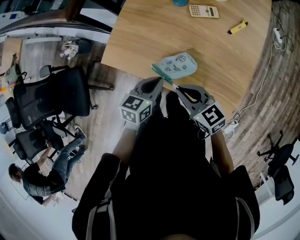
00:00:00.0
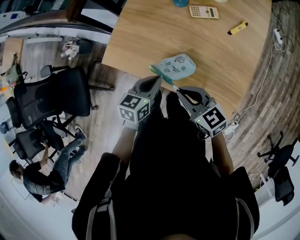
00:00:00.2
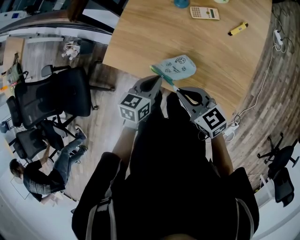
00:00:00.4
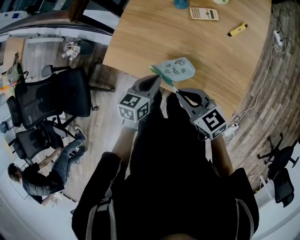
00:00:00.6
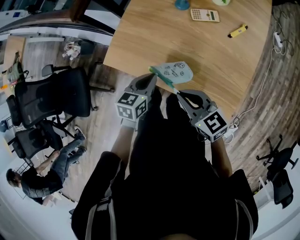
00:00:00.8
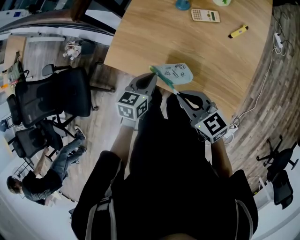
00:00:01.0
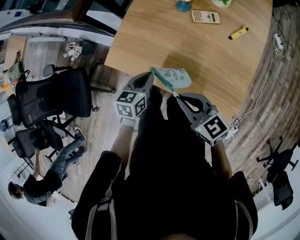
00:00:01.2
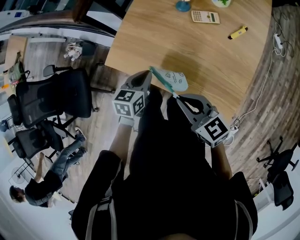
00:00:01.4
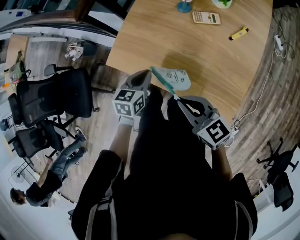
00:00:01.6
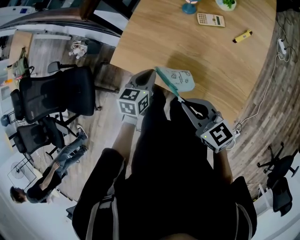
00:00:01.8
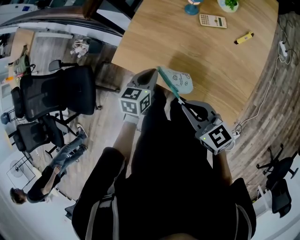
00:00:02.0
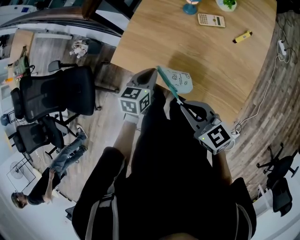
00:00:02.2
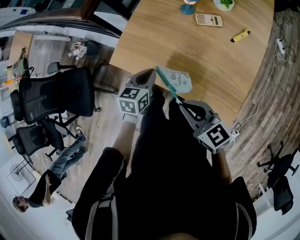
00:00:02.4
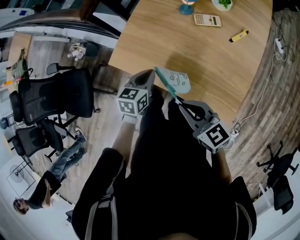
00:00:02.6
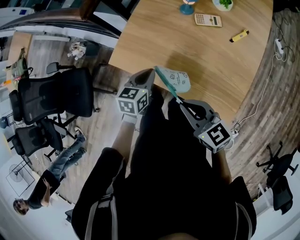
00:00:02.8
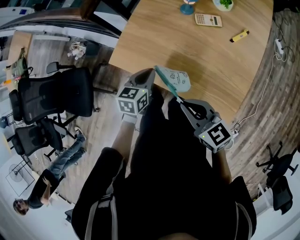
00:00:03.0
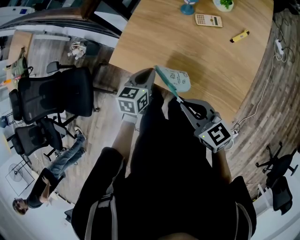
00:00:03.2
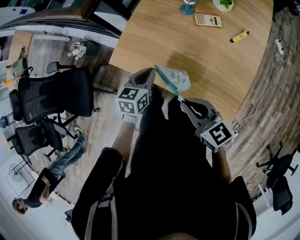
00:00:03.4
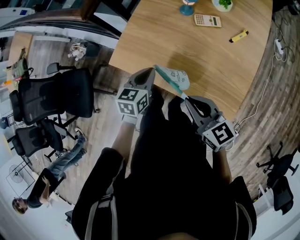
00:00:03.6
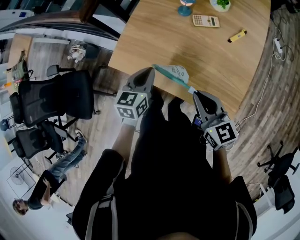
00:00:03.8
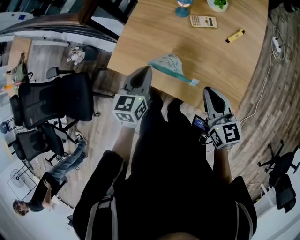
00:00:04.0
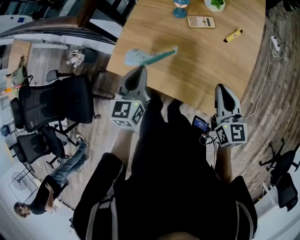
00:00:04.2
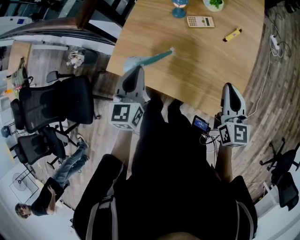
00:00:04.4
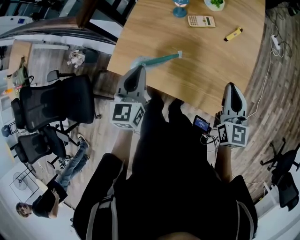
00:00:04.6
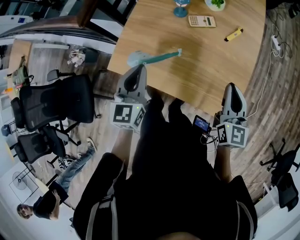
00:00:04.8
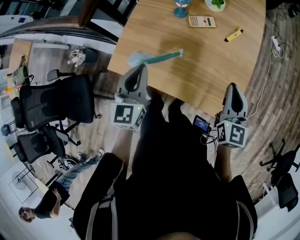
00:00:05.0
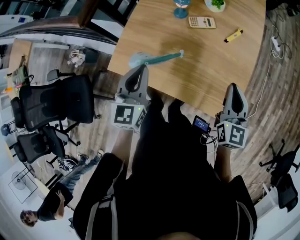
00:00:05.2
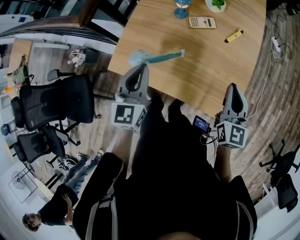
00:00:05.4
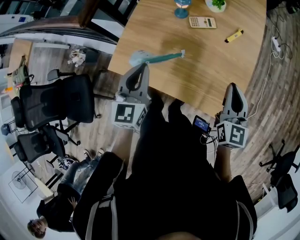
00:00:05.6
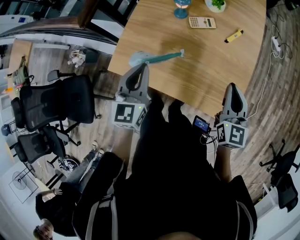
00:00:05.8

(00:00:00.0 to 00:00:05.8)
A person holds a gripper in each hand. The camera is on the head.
00:00:00.0 - 00:00:01.4: The right gripper shifts about 5 cm upward. The left gripper moves about 5 cm.
00:00:01.4 - 00:00:02.8: There are only small adjustments of the grippers.
00:00:02.8 - 00:00:04.4: The left gripper travels upward by roughly 10 cm, and swivels roughly 30 degrees. Meanwhile the right gripper moves to the right, roughly 20 cm, and swivels roughly 50 degrees.
00:00:04.4 - 00:00:05.8: There are only small adjustments of the grippers.

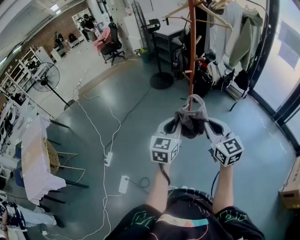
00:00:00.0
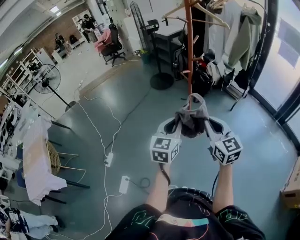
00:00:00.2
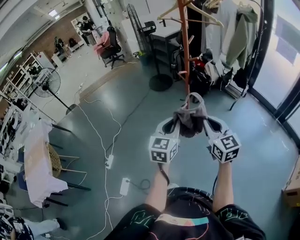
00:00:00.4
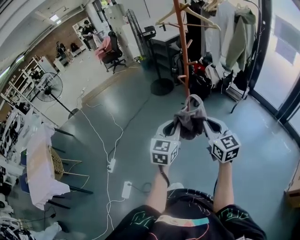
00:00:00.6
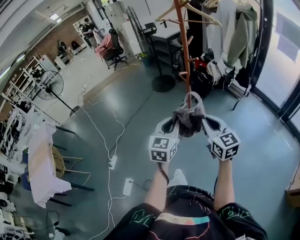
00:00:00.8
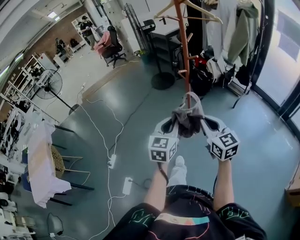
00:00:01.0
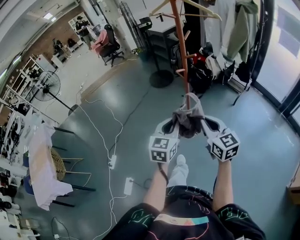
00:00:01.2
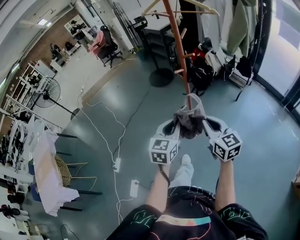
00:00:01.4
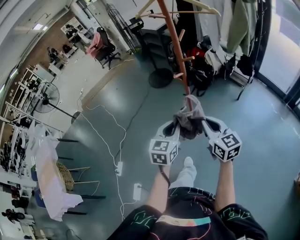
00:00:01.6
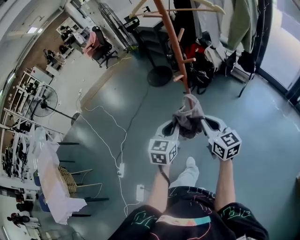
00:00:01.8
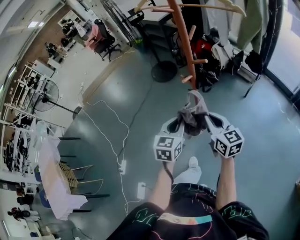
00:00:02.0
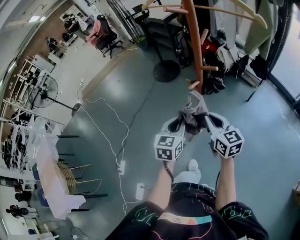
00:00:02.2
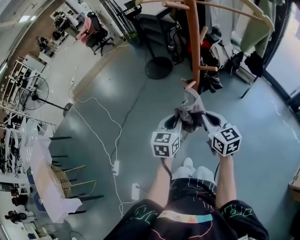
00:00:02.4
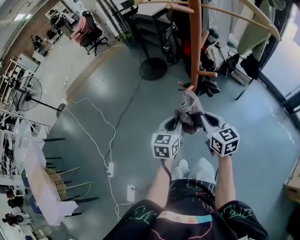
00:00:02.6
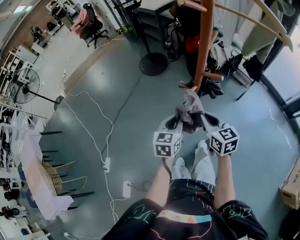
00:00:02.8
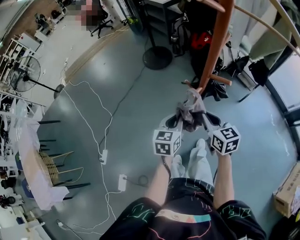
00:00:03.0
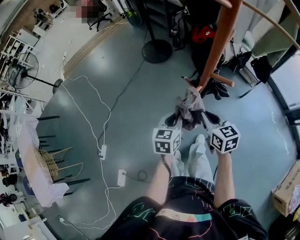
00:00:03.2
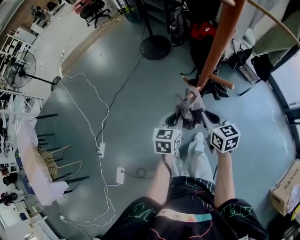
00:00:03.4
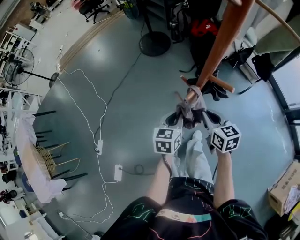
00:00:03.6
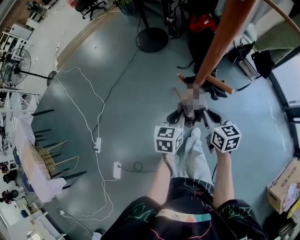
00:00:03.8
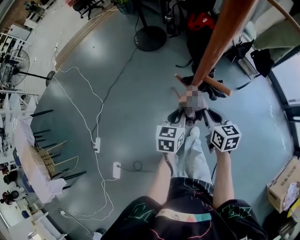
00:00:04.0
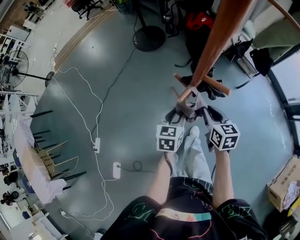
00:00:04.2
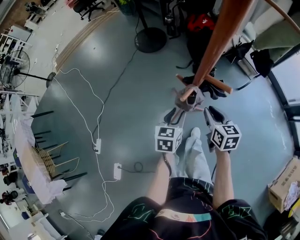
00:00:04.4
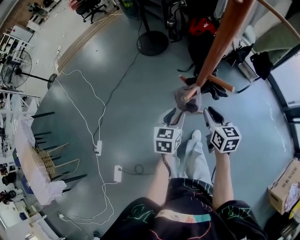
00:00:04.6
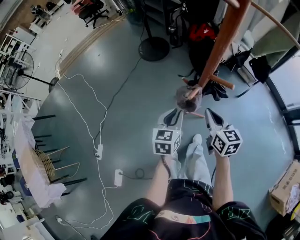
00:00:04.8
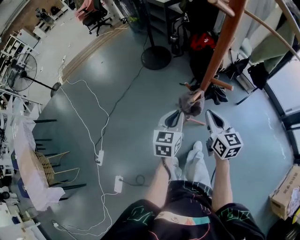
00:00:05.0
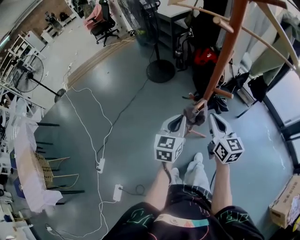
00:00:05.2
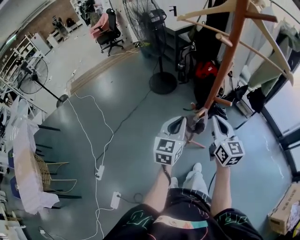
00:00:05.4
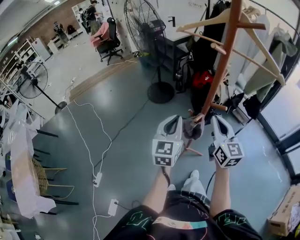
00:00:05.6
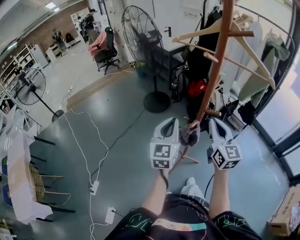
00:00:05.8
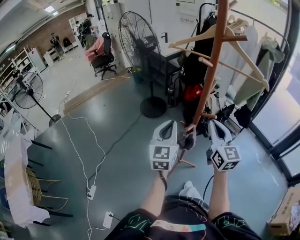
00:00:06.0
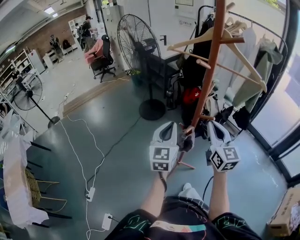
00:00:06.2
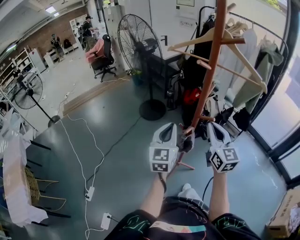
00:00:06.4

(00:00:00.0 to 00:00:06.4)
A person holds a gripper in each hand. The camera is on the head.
00:00:00.0 - 00:00:01.6: The two grippers go some 15 cm forward, downward and to the right.
00:00:01.6 - 00:00:03.2: Both grippers travel together forward and downward, approximately 30 cm. The left gripper changes its angle by approximately 20 degrees. The right gripper changes its angle by approximately 20 degrees.
00:00:03.2 - 00:00:04.8: The left gripper opens, then closes again.
00:00:04.8 - 00:00:06.4: Both grippers move upward, approximately 20 cm. The right gripper swivels about 30 degrees, while the left gripper changes its angle by some 30 degrees.

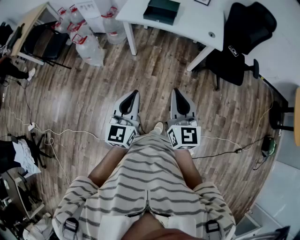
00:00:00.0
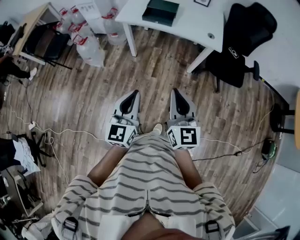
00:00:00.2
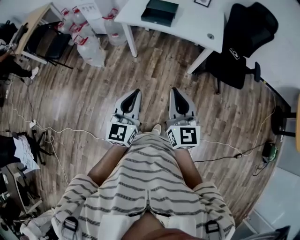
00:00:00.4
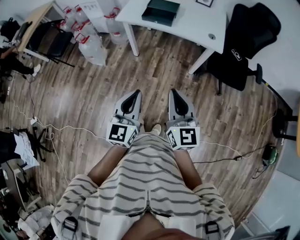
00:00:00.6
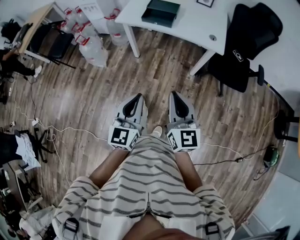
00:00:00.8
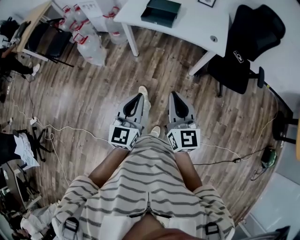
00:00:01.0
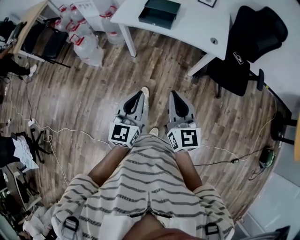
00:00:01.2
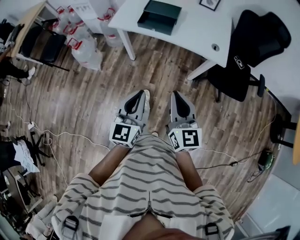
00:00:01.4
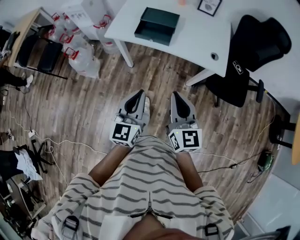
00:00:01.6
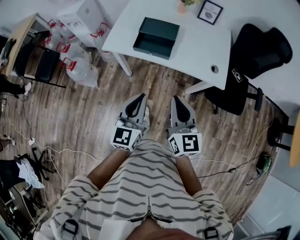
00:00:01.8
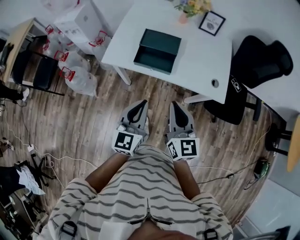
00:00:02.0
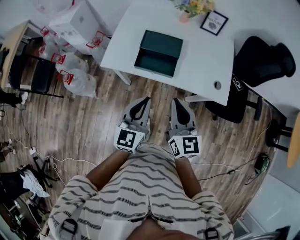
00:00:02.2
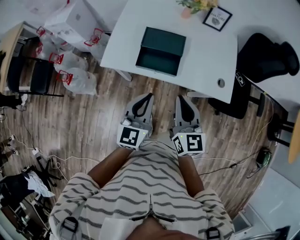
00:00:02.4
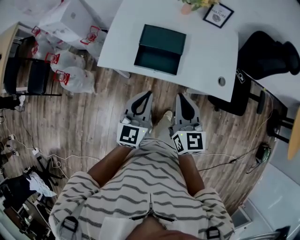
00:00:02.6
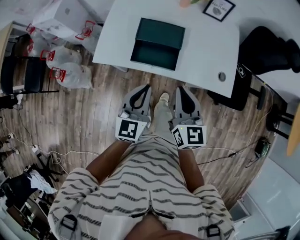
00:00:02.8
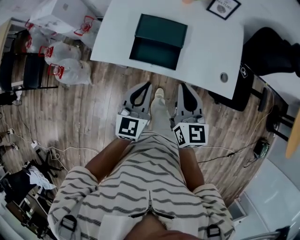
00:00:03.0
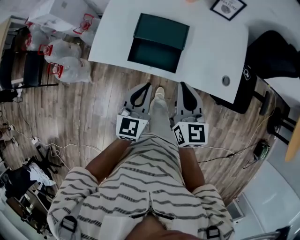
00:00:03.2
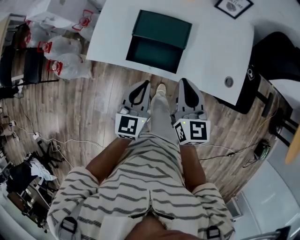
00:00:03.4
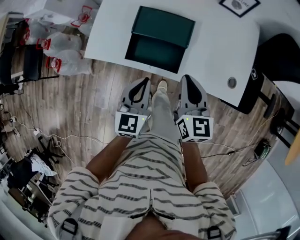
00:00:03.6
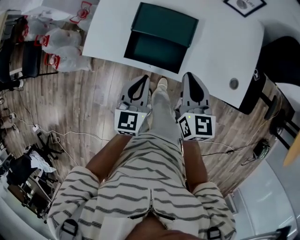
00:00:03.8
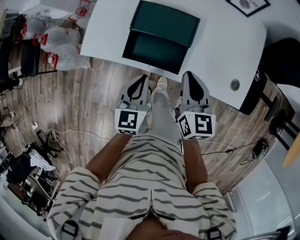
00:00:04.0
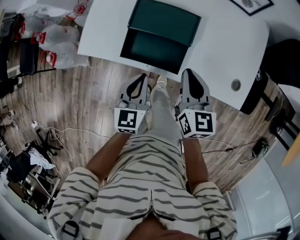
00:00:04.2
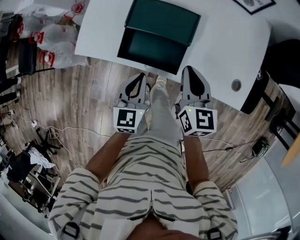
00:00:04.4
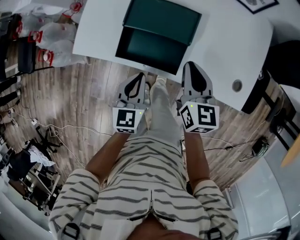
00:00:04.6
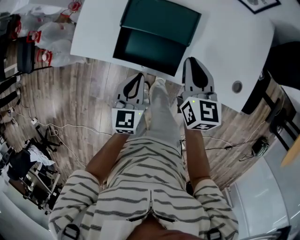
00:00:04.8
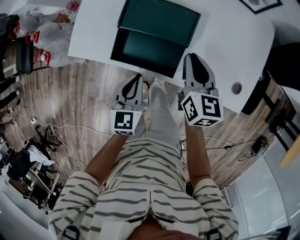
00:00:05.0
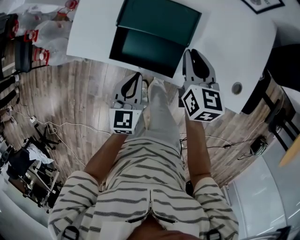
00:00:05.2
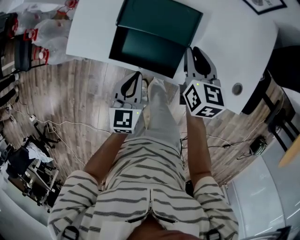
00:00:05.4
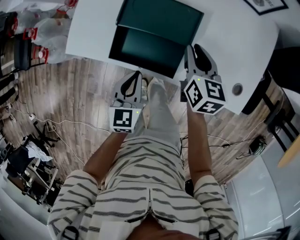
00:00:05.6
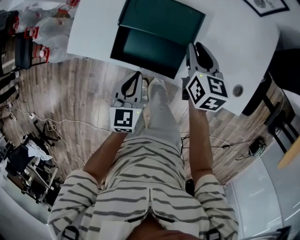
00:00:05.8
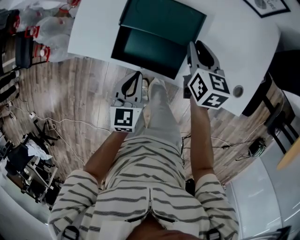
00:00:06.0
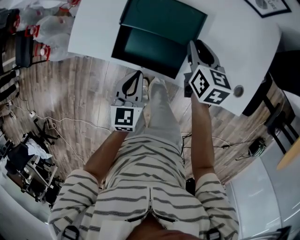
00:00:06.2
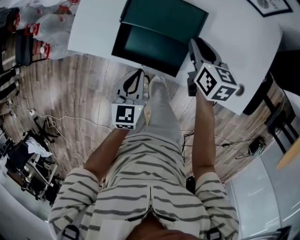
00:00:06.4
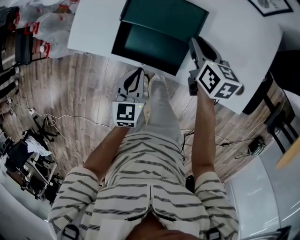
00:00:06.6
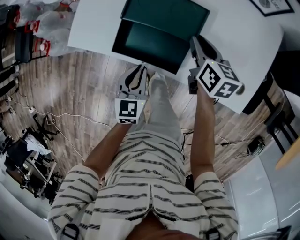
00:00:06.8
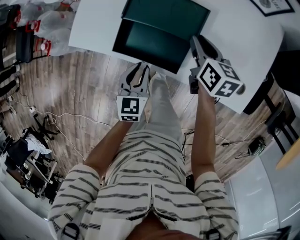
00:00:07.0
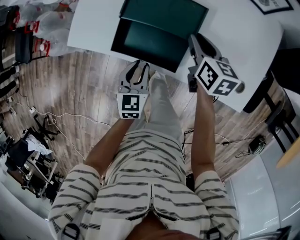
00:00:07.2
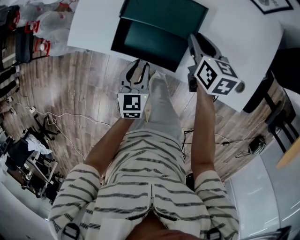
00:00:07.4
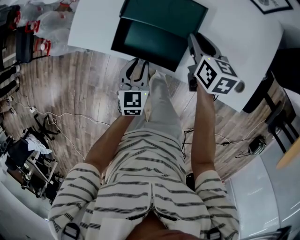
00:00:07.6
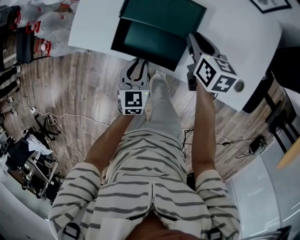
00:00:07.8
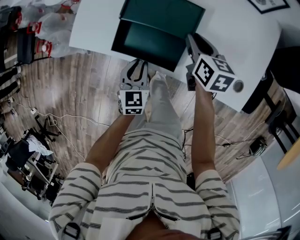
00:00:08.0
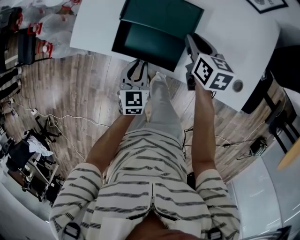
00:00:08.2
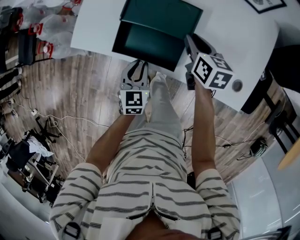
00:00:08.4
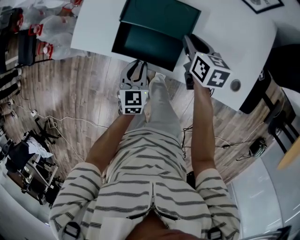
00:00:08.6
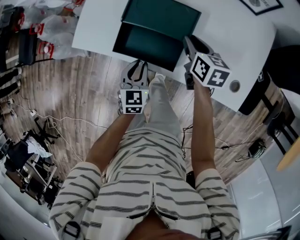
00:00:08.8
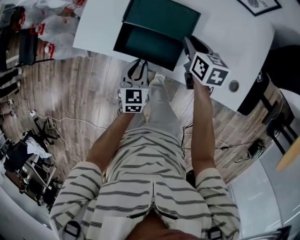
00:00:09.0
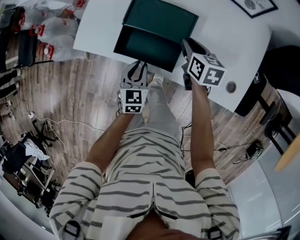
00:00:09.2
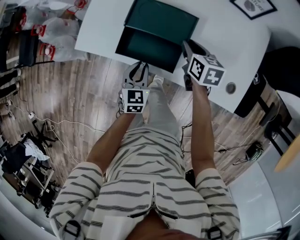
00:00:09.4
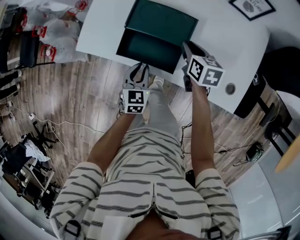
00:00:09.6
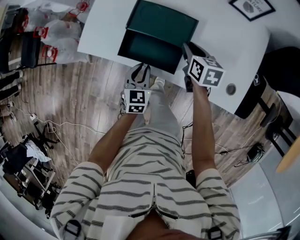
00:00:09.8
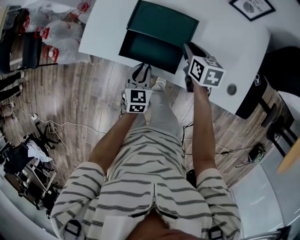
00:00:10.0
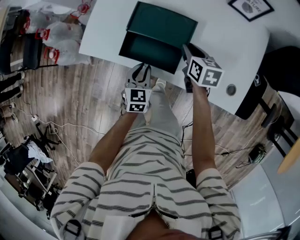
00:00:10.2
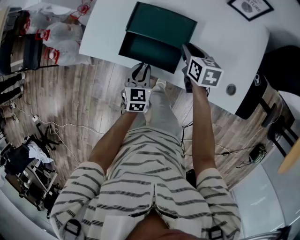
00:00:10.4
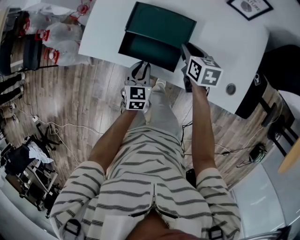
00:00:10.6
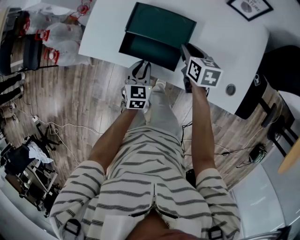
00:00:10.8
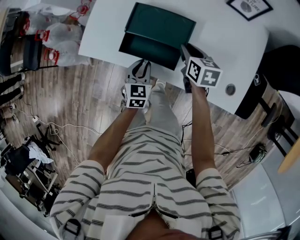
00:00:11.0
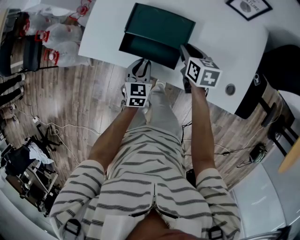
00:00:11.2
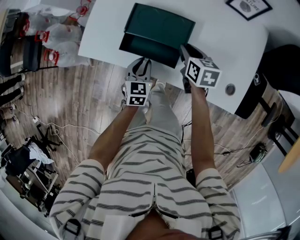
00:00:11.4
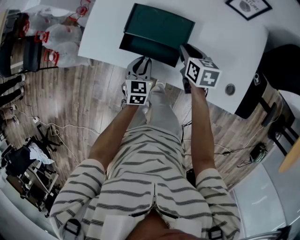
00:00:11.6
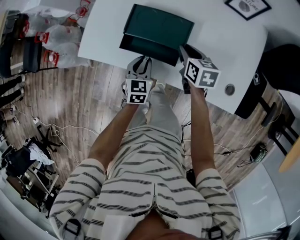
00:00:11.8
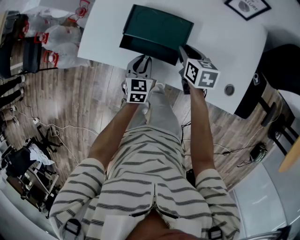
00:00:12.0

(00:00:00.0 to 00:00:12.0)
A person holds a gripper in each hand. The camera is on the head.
00:00:00.0 - 00:00:01.6: Both grippers move forward, some 25 cm.
00:00:01.6 - 00:00:03.0: Both grippers move forward, some 30 cm.
00:00:03.0 - 00:00:04.4: Both grippers travel together downward and forward, roughly 15 cm.
00:00:04.4 - 00:00:06.0: The right gripper goes roughly 15 cm forward and downward.
00:00:06.0 - 00:00:07.6: The left gripper opens.
00:00:07.6 - 00:00:09.0: Both grippers stay put.
00:00:09.0 - 00:00:10.4: The two grippers keep their place.
00:00:10.4 - 00:00:12.0: The grippers move only a little.
